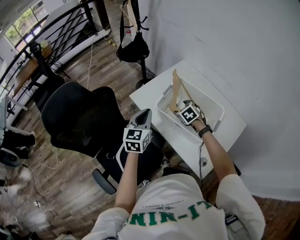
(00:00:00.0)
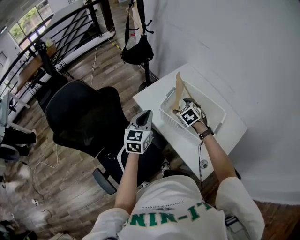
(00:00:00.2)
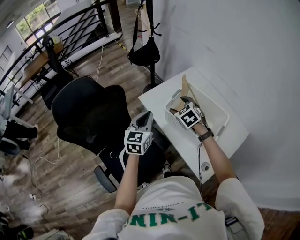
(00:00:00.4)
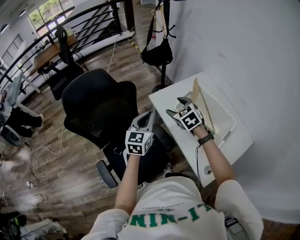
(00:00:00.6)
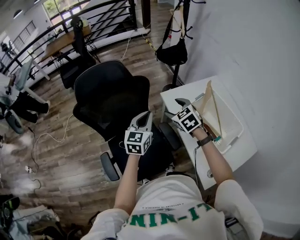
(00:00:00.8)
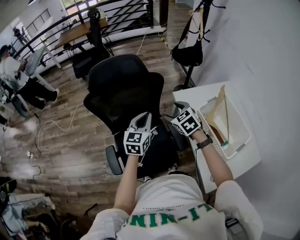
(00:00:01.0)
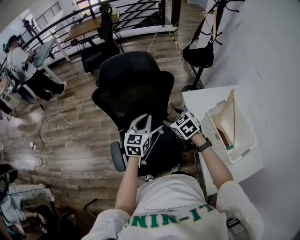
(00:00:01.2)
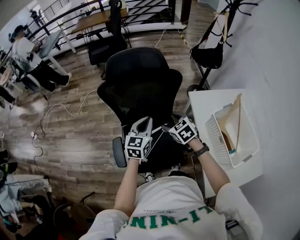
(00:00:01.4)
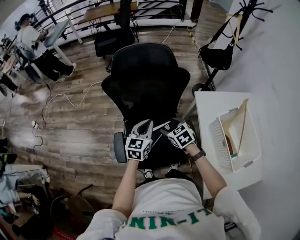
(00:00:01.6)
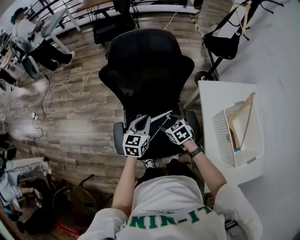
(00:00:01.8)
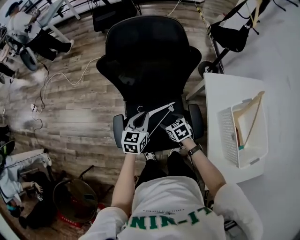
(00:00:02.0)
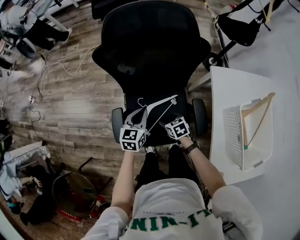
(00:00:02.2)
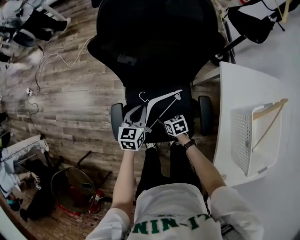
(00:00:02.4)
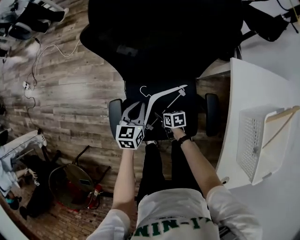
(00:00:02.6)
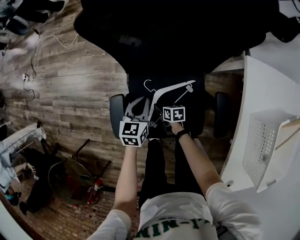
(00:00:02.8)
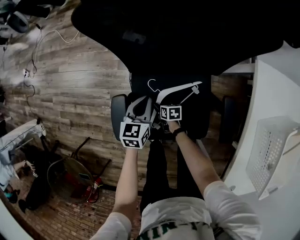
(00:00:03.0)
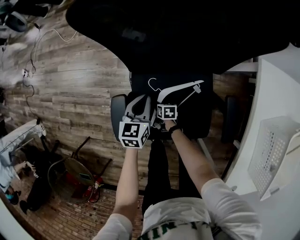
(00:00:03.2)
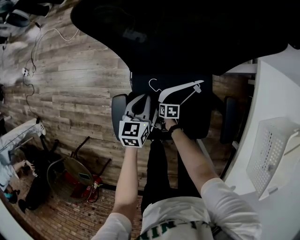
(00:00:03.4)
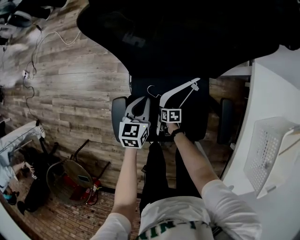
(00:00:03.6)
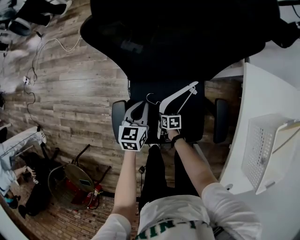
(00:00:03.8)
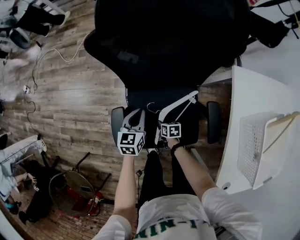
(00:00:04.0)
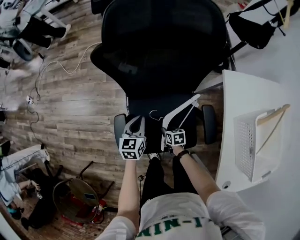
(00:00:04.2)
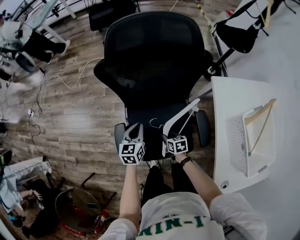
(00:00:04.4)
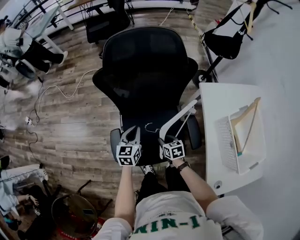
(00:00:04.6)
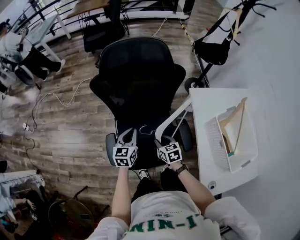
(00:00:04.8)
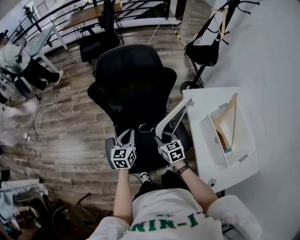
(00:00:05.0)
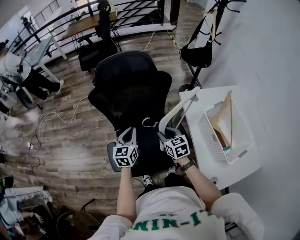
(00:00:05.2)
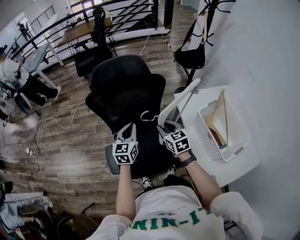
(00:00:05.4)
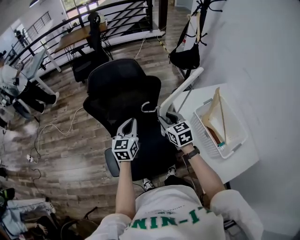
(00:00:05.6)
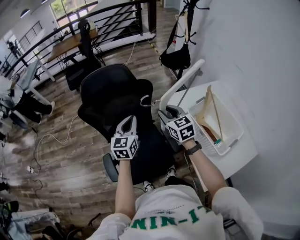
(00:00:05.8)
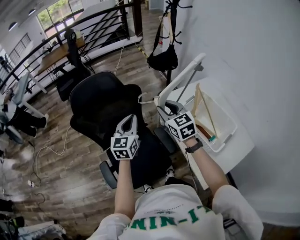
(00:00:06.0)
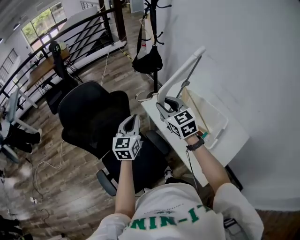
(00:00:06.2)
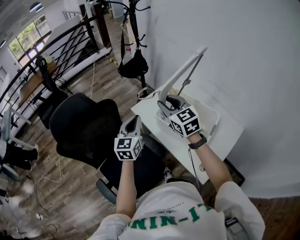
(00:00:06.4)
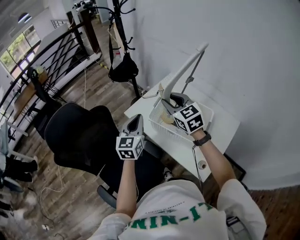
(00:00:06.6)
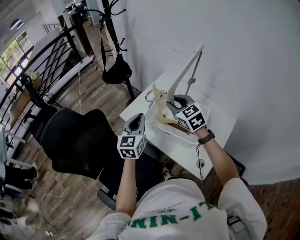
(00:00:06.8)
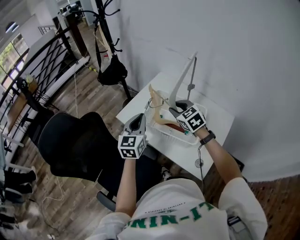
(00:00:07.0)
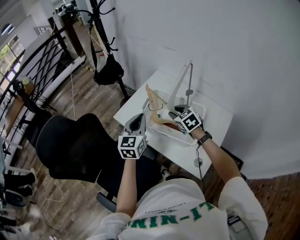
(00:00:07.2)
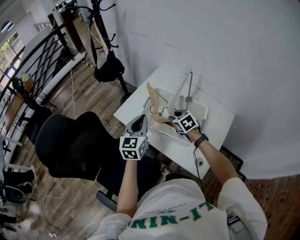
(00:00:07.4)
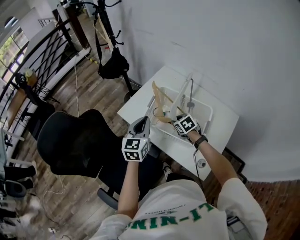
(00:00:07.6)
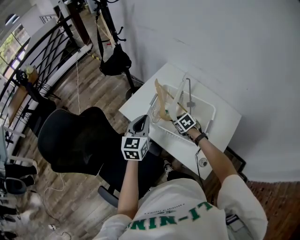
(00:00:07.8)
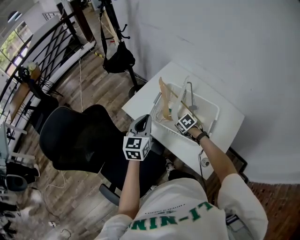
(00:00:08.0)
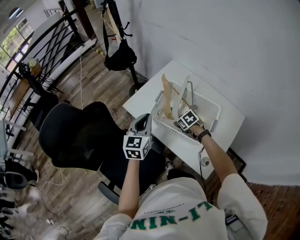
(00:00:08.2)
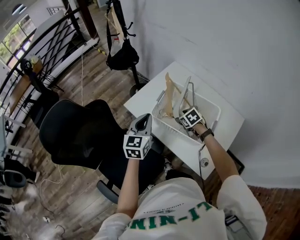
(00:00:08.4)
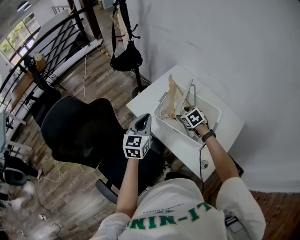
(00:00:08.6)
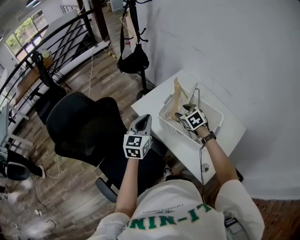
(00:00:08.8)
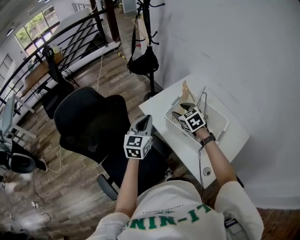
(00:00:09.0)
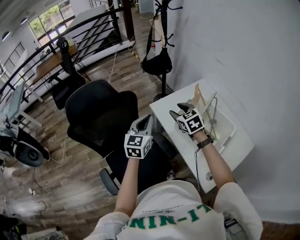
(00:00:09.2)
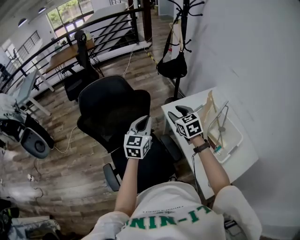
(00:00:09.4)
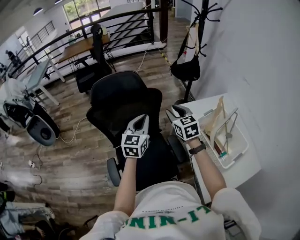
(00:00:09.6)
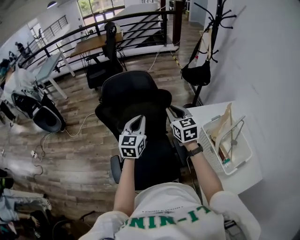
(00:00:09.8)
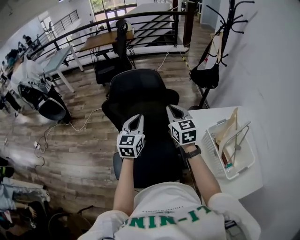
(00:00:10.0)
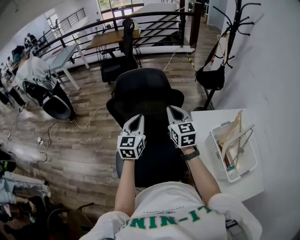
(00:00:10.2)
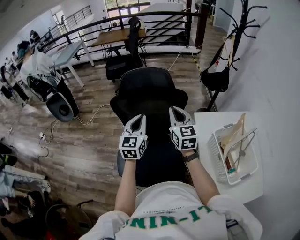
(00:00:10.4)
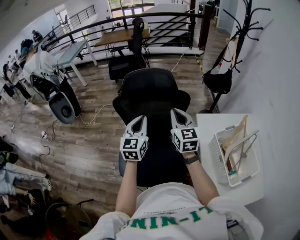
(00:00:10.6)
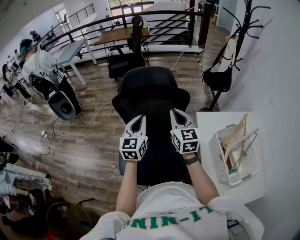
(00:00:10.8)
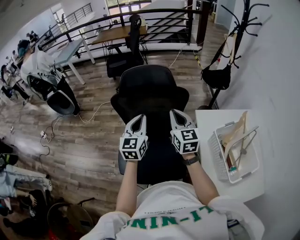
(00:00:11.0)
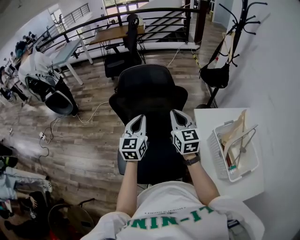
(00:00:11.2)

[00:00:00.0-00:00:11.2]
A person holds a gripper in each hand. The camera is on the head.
00:00:00.0 to 00:00:01.6: The left gripper shifts by about 35 cm, and turns by roughly 30 degrees, while the right gripper travels upward and back again, some 15 cm each way, and swivels some 40 degrees.
00:00:01.6 to 00:00:03.2: The right gripper heads downward, covering roughly 50 cm, and turns by roughly 40 degrees. Meanwhile the left gripper is displaced downward by roughly 35 cm, and rotates roughly 20 degrees.
00:00:03.2 to 00:00:04.8: The right gripper travels upward by approximately 40 cm, and turns by about 30 degrees; the left gripper moves upward, some 25 cm.
00:00:04.8 to 00:00:06.4: The left gripper shifts by approximately 40 cm, and turns by approximately 40 degrees. Meanwhile the right gripper shifts about 35 cm upward, and swivels approximately 50 degrees.
00:00:06.4 to 00:00:08.0: The left gripper shifts roughly 10 cm to the right; the right gripper moves downward and to the right, roughly 35 cm, and angles its fingers downward, by approximately 50 degrees.
00:00:08.0 to 00:00:09.6: The right gripper changes place by roughly 40 cm, and tilts its fingers approximately 40 degrees upward. The left gripper changes place by some 30 cm, and rotates about 30 degrees.
00:00:09.6 to 00:00:11.2: Both grippers move to the left, approximately 10 cm. The right gripper closes its fingers.

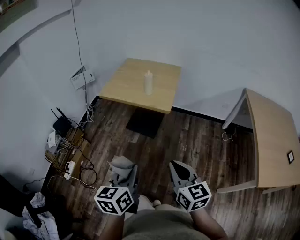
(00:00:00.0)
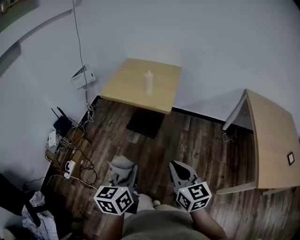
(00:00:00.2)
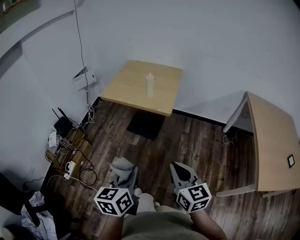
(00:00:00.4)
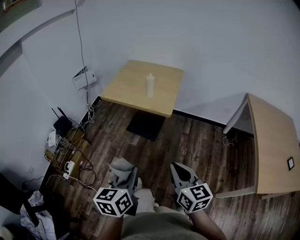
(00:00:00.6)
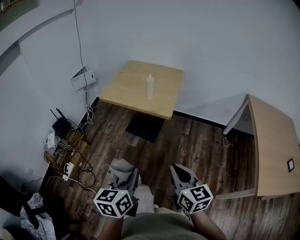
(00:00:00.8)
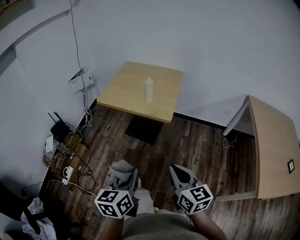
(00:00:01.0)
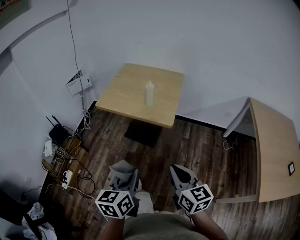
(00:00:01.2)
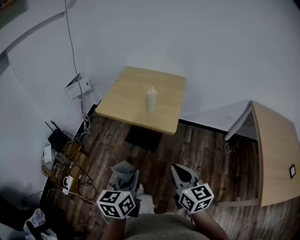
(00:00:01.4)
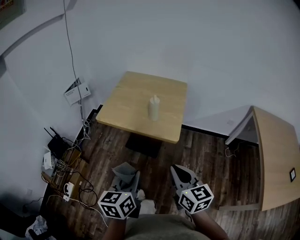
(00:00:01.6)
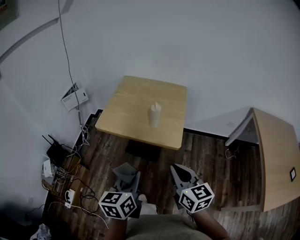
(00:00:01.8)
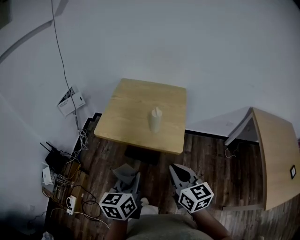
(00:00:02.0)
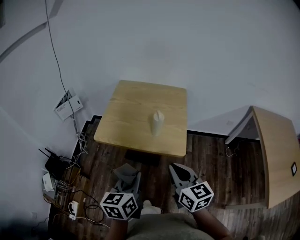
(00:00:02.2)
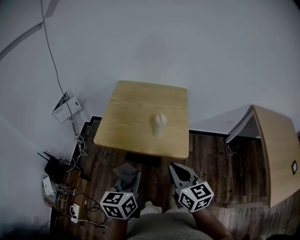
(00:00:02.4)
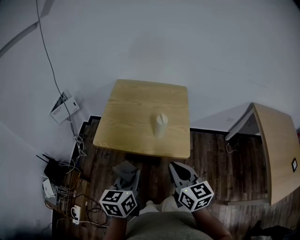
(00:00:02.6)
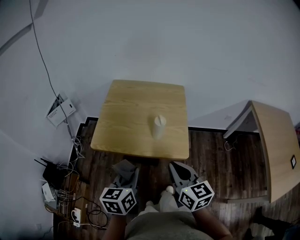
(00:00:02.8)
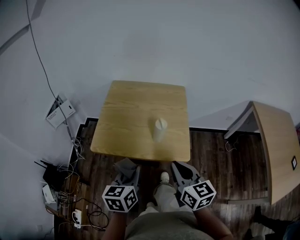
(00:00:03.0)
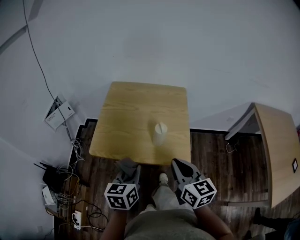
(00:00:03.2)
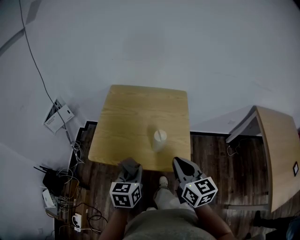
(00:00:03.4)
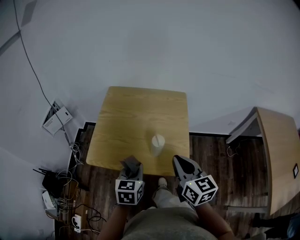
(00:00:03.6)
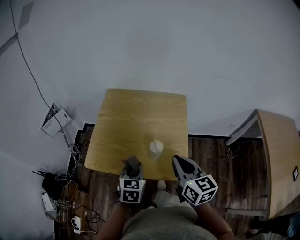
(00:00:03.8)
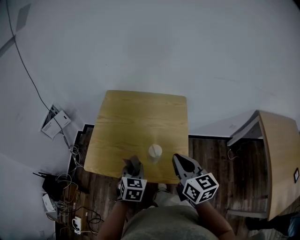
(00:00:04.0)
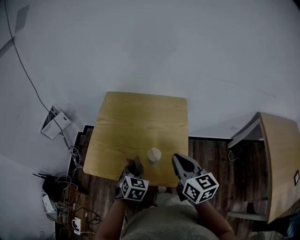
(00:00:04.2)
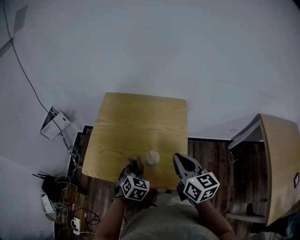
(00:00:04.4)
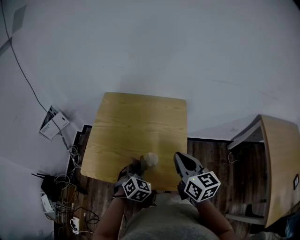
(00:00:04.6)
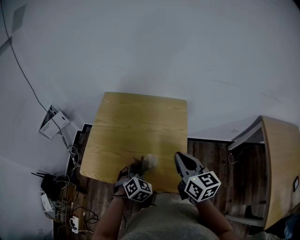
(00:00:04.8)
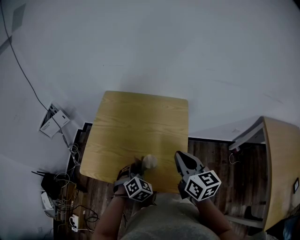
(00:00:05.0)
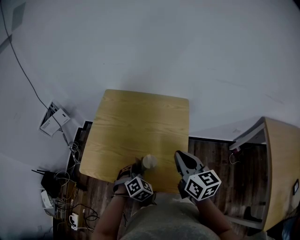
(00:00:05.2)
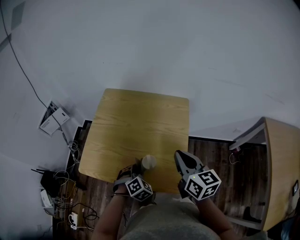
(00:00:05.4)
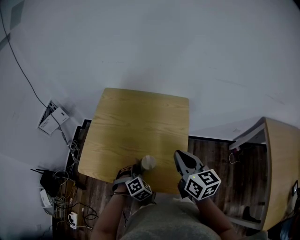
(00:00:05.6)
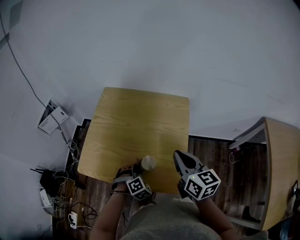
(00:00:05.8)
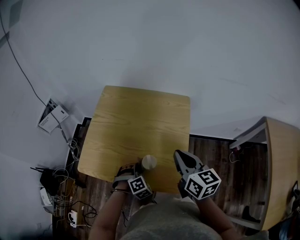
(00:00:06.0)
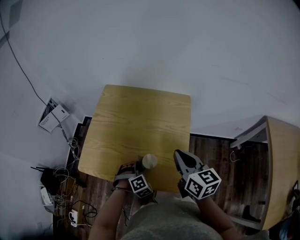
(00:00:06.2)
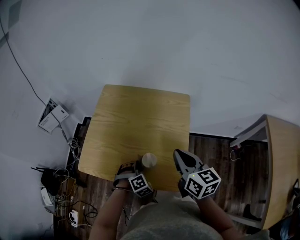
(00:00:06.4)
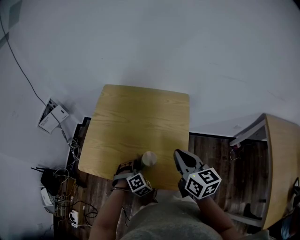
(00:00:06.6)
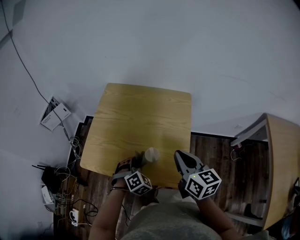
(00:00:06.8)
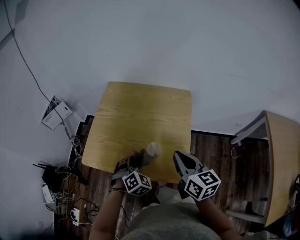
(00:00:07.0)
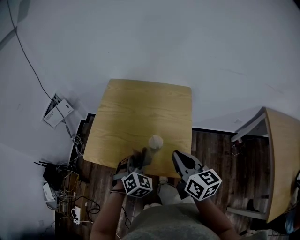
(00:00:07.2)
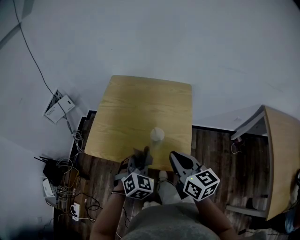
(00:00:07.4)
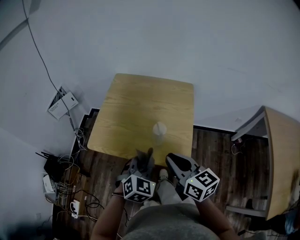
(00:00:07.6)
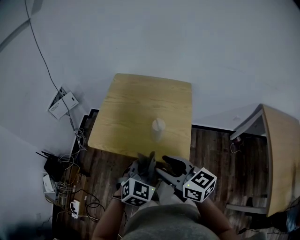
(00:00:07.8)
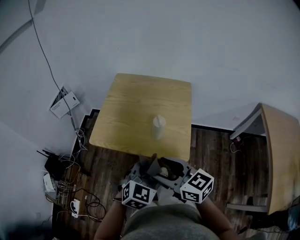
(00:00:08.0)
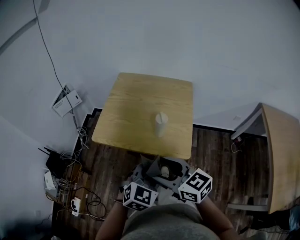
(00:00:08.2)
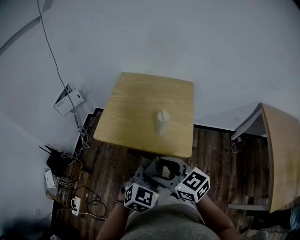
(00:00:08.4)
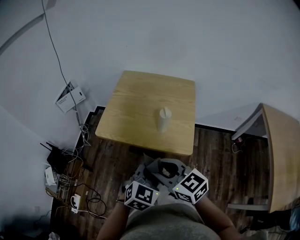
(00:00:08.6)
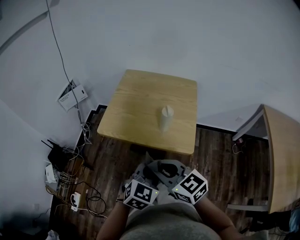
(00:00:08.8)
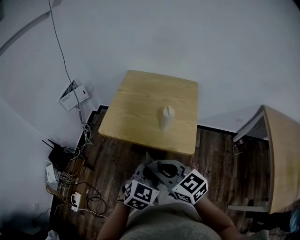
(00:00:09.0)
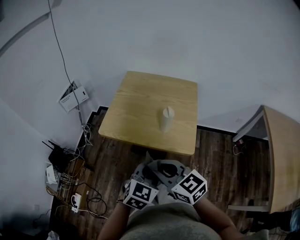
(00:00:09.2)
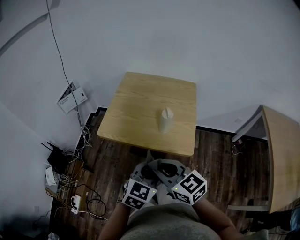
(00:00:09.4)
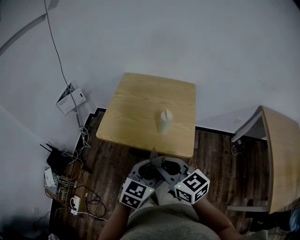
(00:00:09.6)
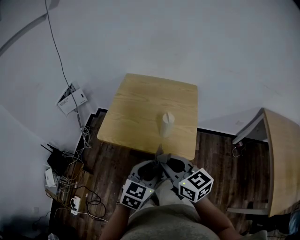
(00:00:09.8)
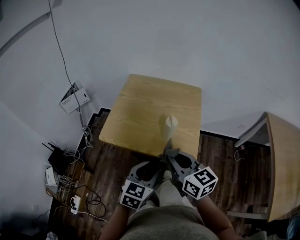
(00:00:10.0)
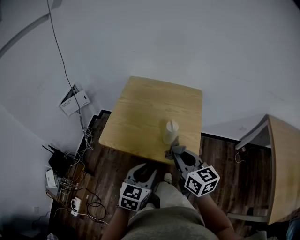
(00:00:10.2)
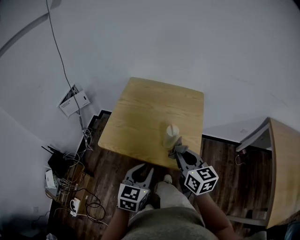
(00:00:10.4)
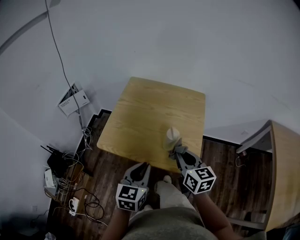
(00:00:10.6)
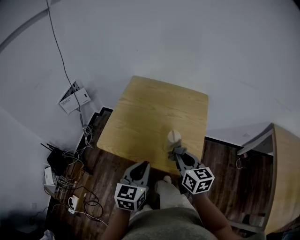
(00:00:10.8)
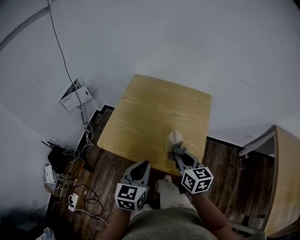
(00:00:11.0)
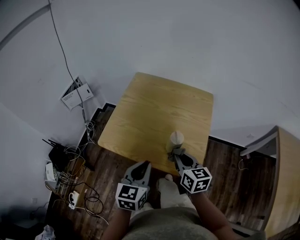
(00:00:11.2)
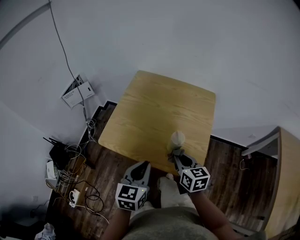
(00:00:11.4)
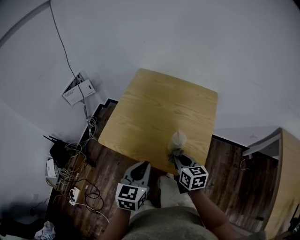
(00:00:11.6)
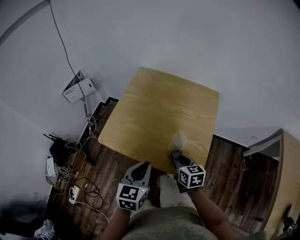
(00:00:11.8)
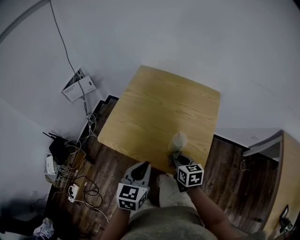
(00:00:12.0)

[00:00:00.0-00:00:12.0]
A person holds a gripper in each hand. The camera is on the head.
00:00:00.0 to 00:00:01.6: Both grippers travel together forward, about 20 cm.
00:00:01.6 to 00:00:03.0: Both grippers travel together forward, about 20 cm.
00:00:03.0 to 00:00:04.4: The right gripper travels forward by roughly 20 cm. Meanwhile the left gripper goes some 20 cm forward and downward, and twists about 40 degrees clockwise, seen from behind.
00:00:04.4 to 00:00:06.0: The right gripper shifts by about 5 cm, while the left gripper is displaced downward by about 10 cm, and swivels some 40 degrees.
00:00:06.0 to 00:00:07.6: The right gripper moves backward and to the left, approximately 15 cm, while the left gripper heads upward and backward, covering approximately 20 cm, and changes its angle by about 40 degrees.
00:00:07.6 to 00:00:09.0: The left gripper moves backward, roughly 15 cm; the right gripper heads to the left and backward, covering about 15 cm, changes its angle by some 30 degrees, and opens, then closes once more.
00:00:09.0 to 00:00:10.4: The left gripper goes roughly 10 cm forward, and swivels approximately 20 degrees. Meanwhile the right gripper heads forward and to the right, covering approximately 20 cm, and changes its angle by some 30 degrees.
00:00:10.4 to 00:00:12.0: The right gripper shifts about 20 cm downward, and swivels roughly 20 degrees, while the left gripper goes approximately 5 cm forward.
